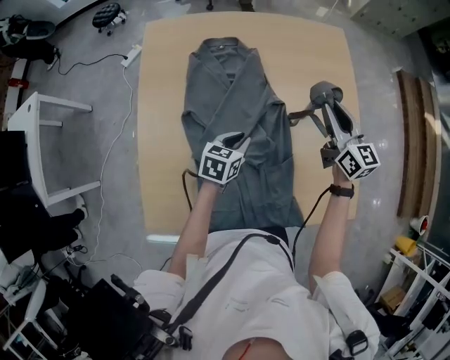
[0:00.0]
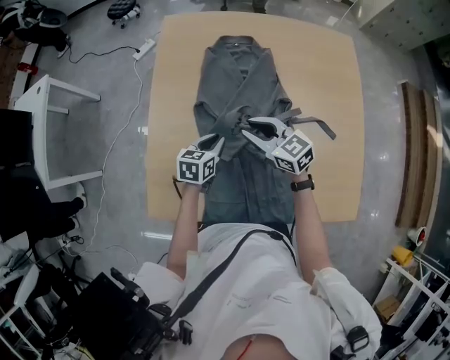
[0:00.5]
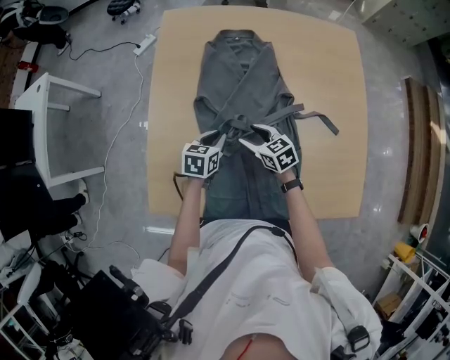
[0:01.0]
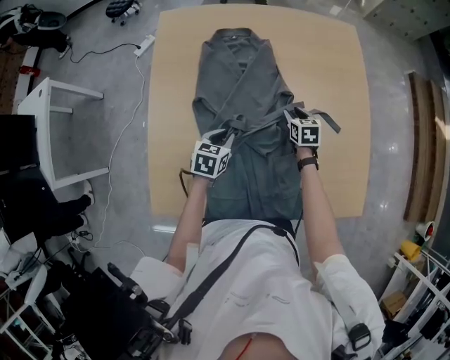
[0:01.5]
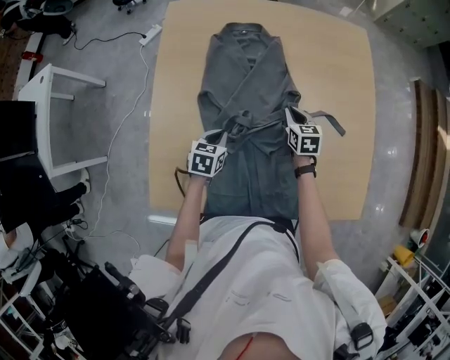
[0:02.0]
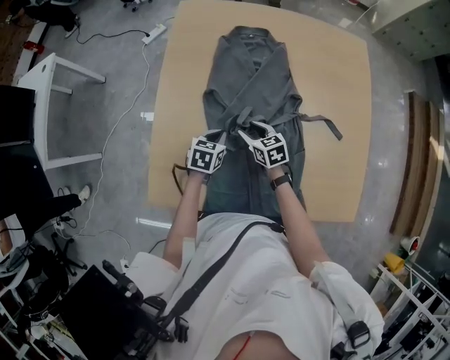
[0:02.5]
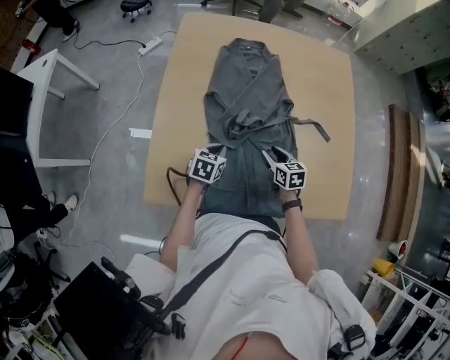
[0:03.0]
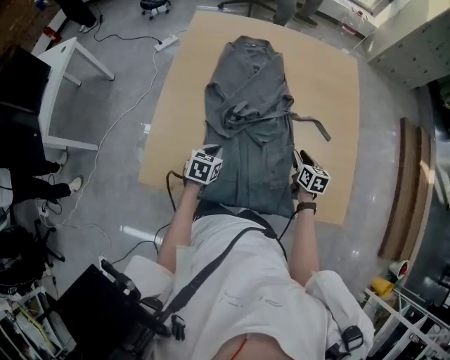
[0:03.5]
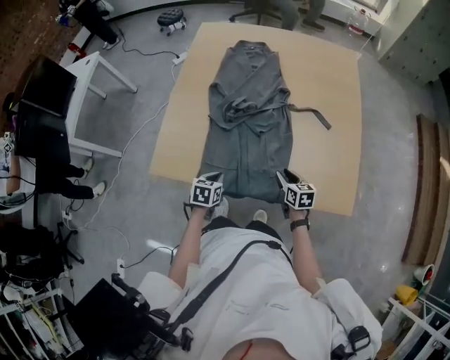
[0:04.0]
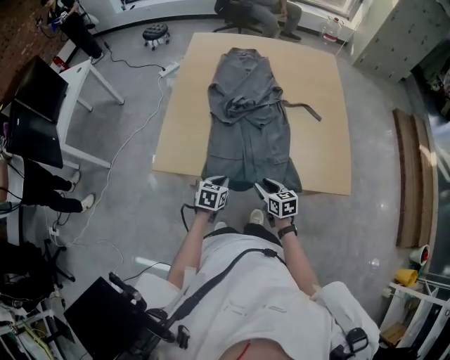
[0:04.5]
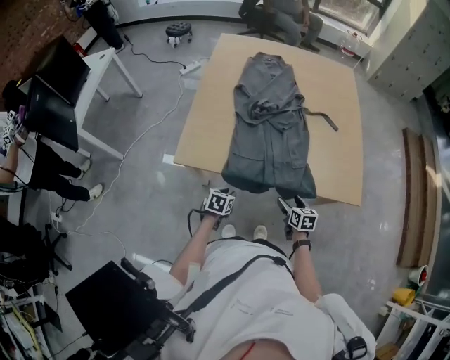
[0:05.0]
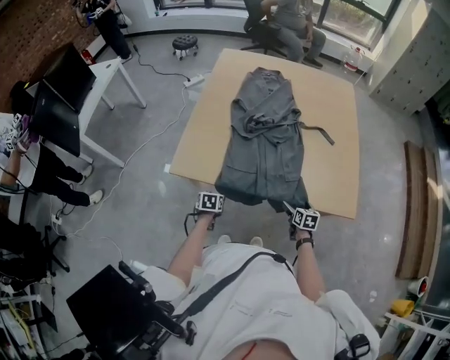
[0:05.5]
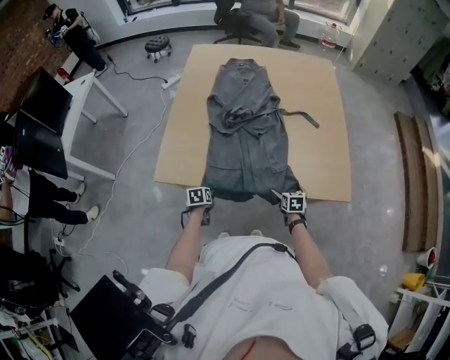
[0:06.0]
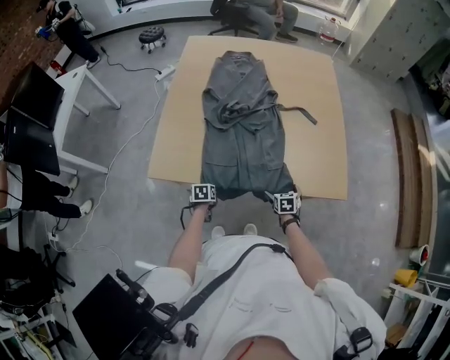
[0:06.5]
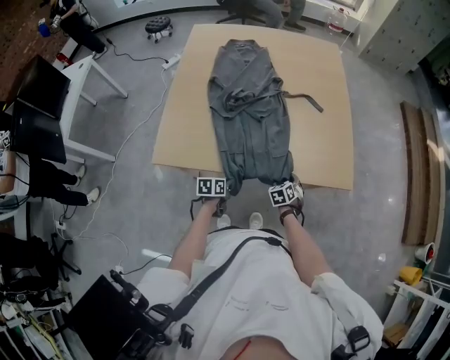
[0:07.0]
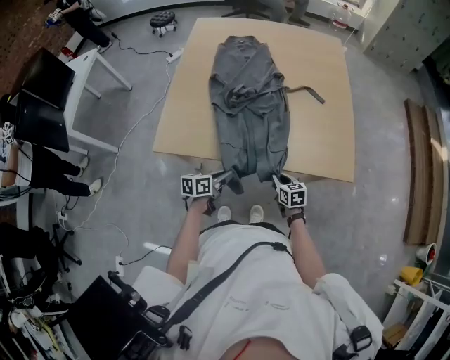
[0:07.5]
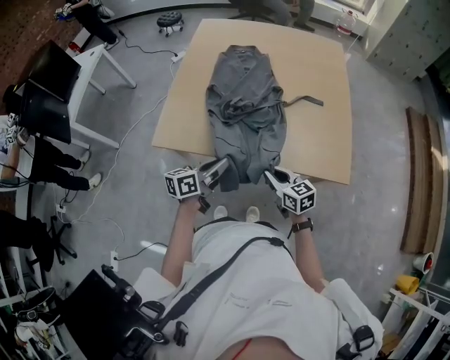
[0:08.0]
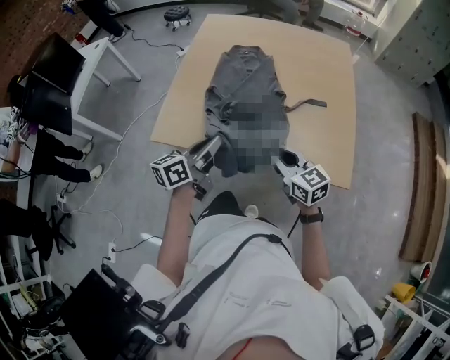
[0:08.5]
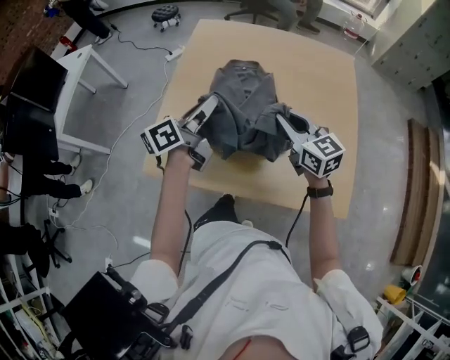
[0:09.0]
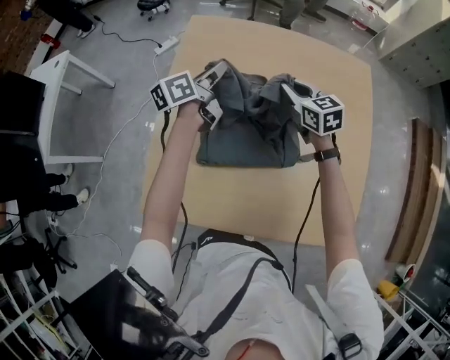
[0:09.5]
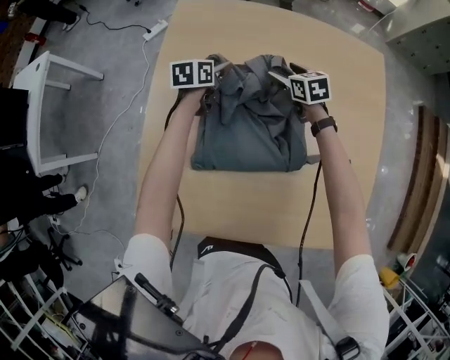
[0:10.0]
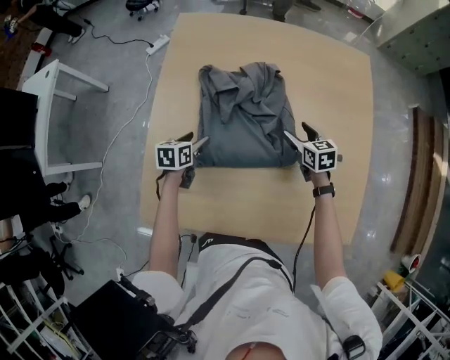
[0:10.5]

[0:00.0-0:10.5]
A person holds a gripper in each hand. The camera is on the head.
0:00.0 to 0:02.0: The left gripper moves about 15 cm. The right gripper goes roughly 25 cm downward, and tilts its fingers roughly 30 degrees downward.
0:02.0 to 0:04.0: Both grippers move backward, approximately 25 cm.
0:04.0 to 0:06.5: The left gripper moves downward, backward and to the left, roughly 15 cm, and opens up. Meanwhile the right gripper goes some 10 cm backward and downward, turns by approximately 30 degrees, and opens up.
0:06.5 to 0:08.5: The grippers both shift upward by approximately 35 cm. The right gripper points its fingers about 40 degrees further upward, and closes its fingers, while the left gripper tips its fingers upward by roughly 60 degrees, and closes.
0:08.5 to 0:10.5: The two grippers go approximately 40 cm forward and downward. The right gripper turns by about 30 degrees, and opens up; the left gripper tilts its fingers roughly 40 degrees downward, and opens its fingers.

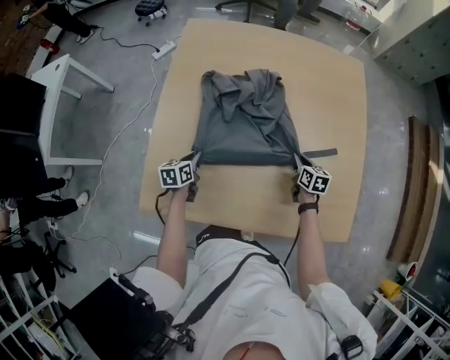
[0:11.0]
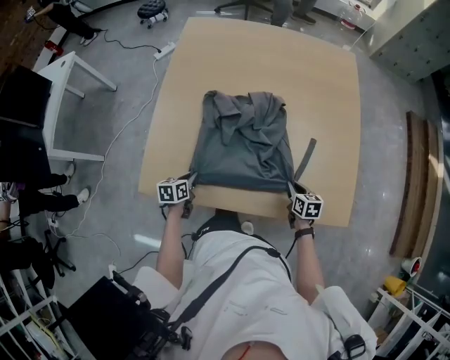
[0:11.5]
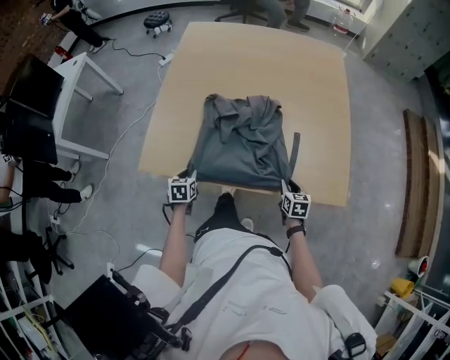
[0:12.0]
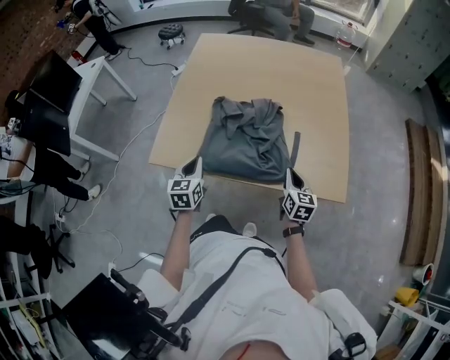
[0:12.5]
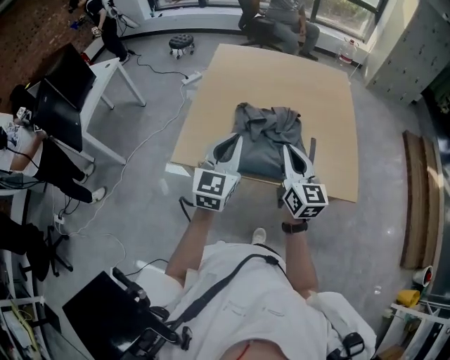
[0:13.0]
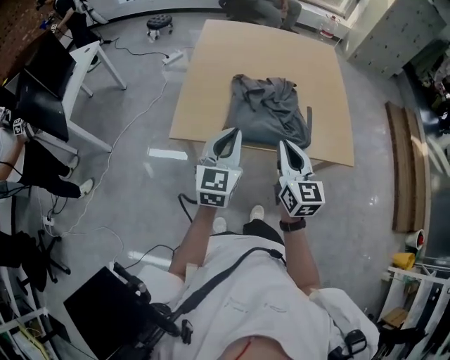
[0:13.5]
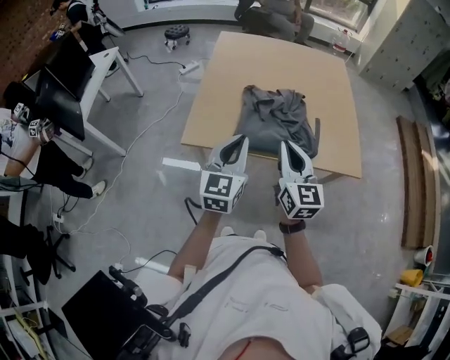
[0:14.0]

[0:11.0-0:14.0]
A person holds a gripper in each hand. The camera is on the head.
0:11.0 to 0:12.5: Both grippers move backward and upward, approximately 30 cm. The right gripper changes its angle by approximately 20 degrees. The left gripper swivels about 30 degrees.
0:12.5 to 0:14.0: The left gripper shifts roughly 20 cm upward and backward, and turns by about 30 degrees. The right gripper travels upward, to the left and backward by approximately 35 cm, and turns by approximately 30 degrees.

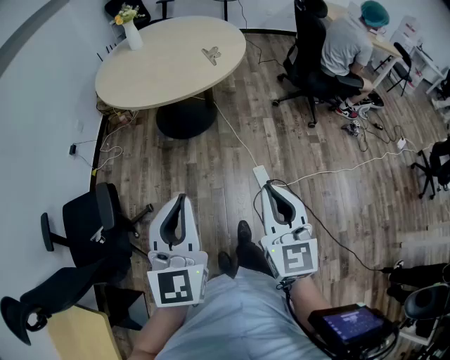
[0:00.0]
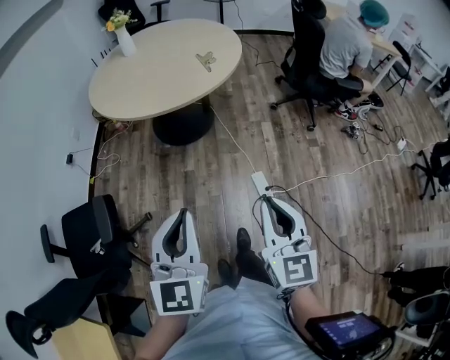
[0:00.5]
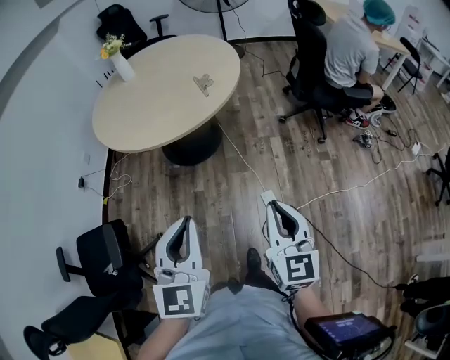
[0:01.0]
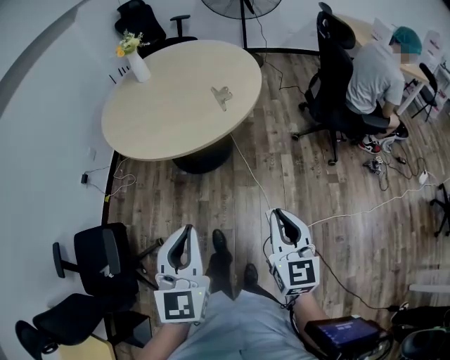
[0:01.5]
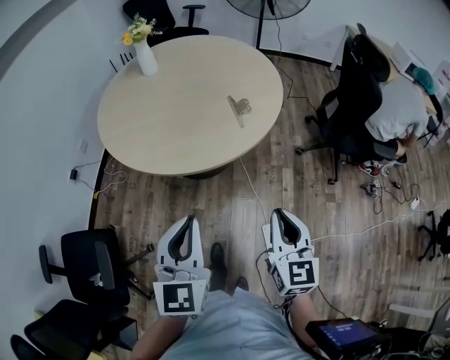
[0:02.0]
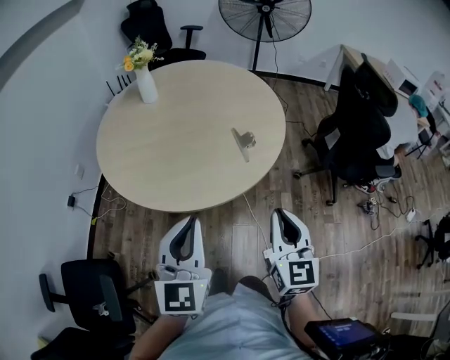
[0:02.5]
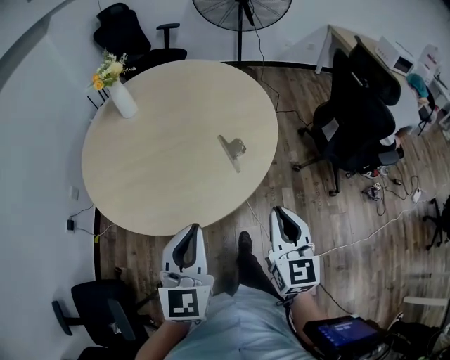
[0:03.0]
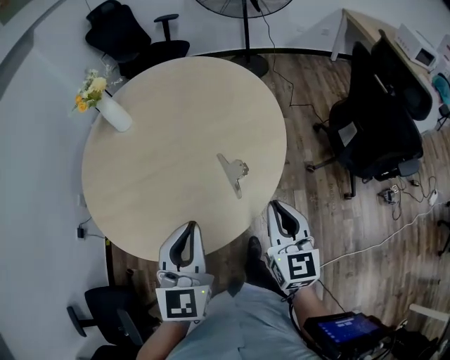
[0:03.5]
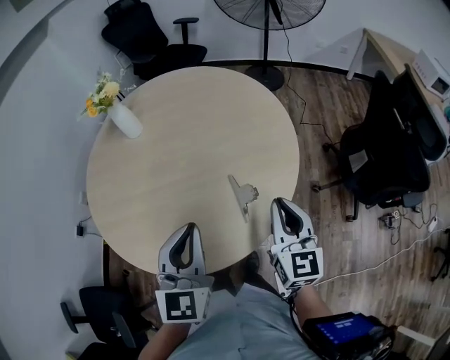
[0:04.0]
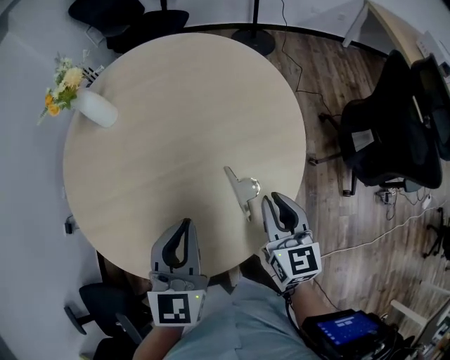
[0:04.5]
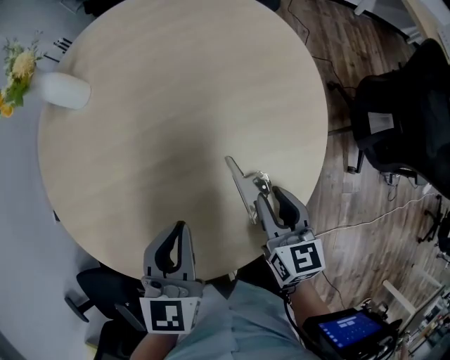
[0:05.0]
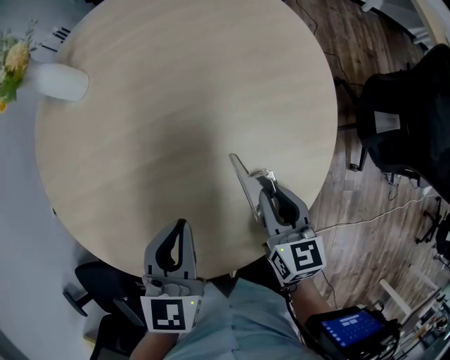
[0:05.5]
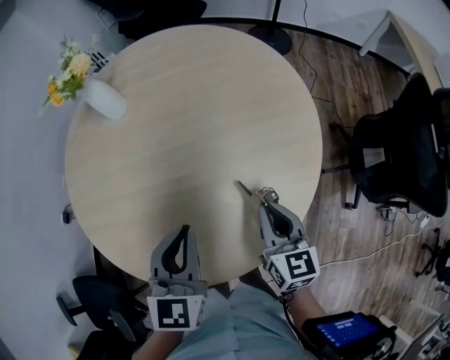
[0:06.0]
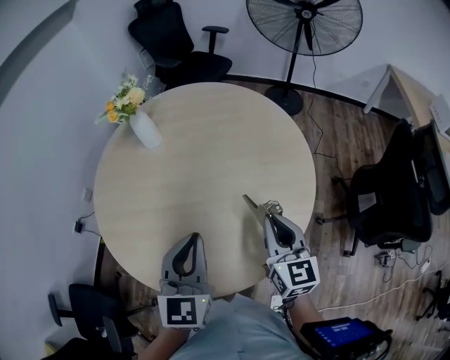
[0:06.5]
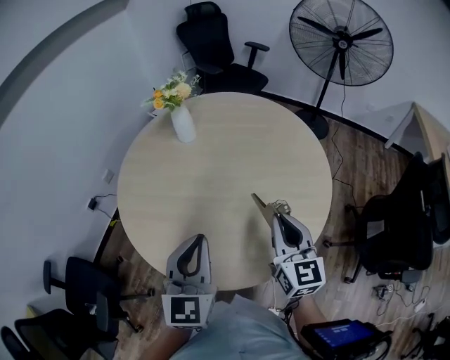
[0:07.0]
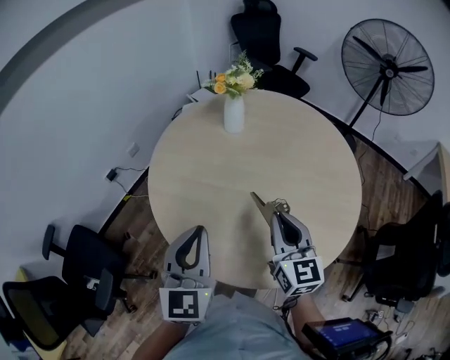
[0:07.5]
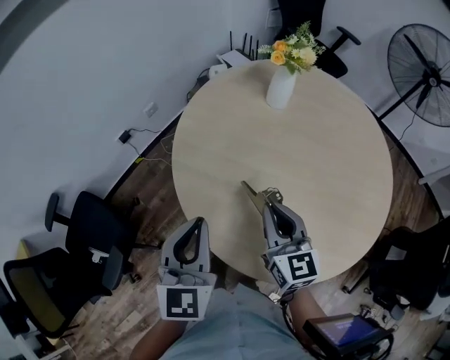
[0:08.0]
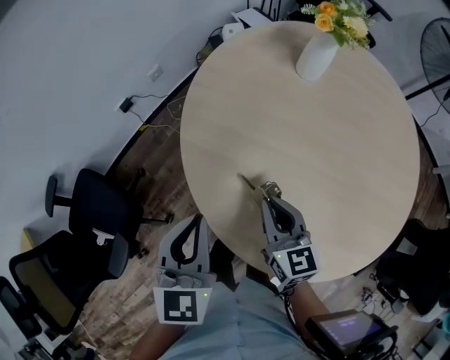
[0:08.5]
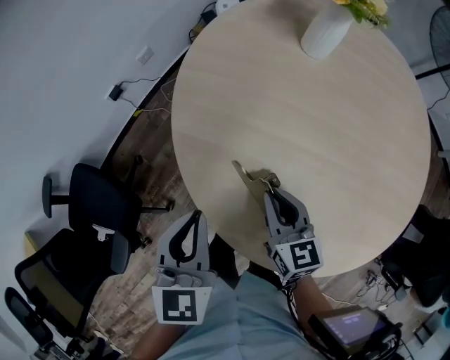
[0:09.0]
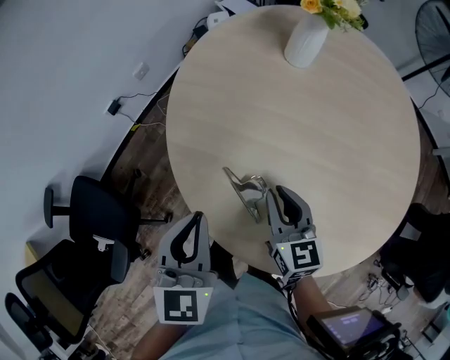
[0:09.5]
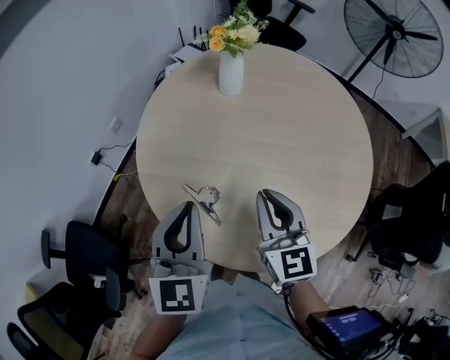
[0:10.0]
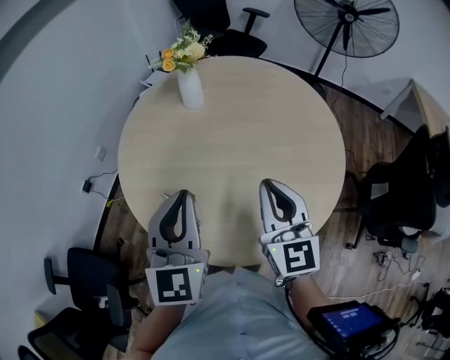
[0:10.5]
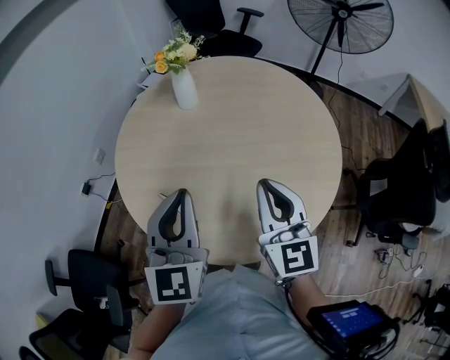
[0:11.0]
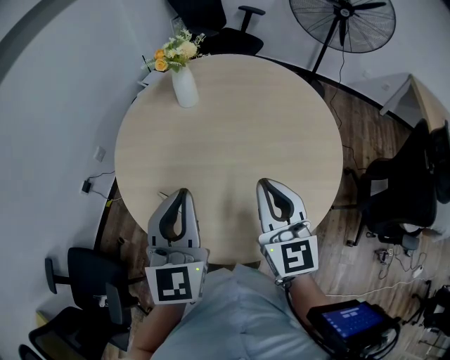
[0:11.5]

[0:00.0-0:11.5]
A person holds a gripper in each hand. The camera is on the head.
0:00.0 to 0:02.0: The grippers both shift forward by about 40 cm.
0:02.0 to 0:04.0: The two grippers travel together, forward, approximately 40 cm.
0:04.0 to 0:06.0: The left gripper moves forward and downward, approximately 15 cm, while the right gripper moves downward, forward and to the left, some 15 cm, and opens and closes again.
0:06.0 to 0:07.5: The left gripper heads to the left, upward and backward, covering roughly 25 cm, and changes its angle by some 30 degrees. The right gripper goes approximately 25 cm to the left and upward, and swivels roughly 30 degrees.
0:07.5 to 0:09.5: The left gripper shifts about 25 cm to the left, downward and forward, and turns by roughly 20 degrees; the right gripper is displaced downward, to the left and forward by roughly 30 cm.
0:09.5 to 0:11.5: The right gripper moves upward, to the right and backward, roughly 30 cm, and swivels approximately 30 degrees, while the left gripper travels to the right and upward by roughly 25 cm, and swivels some 30 degrees.

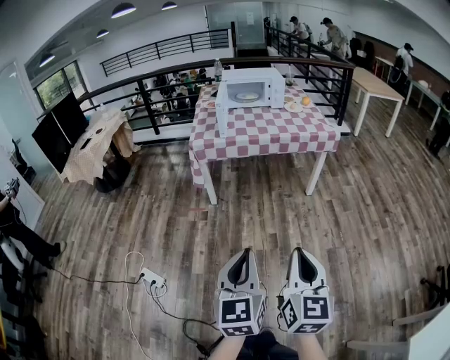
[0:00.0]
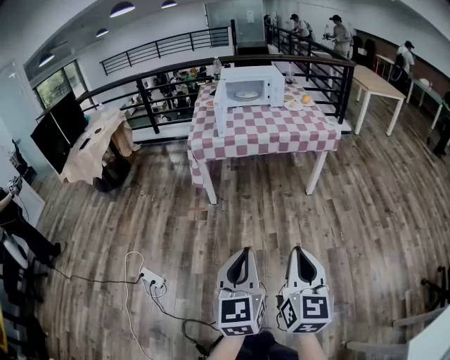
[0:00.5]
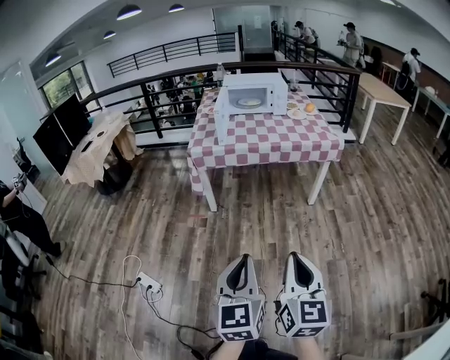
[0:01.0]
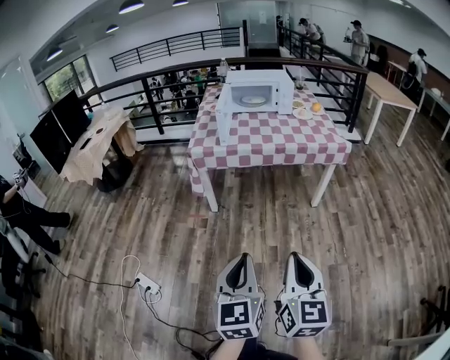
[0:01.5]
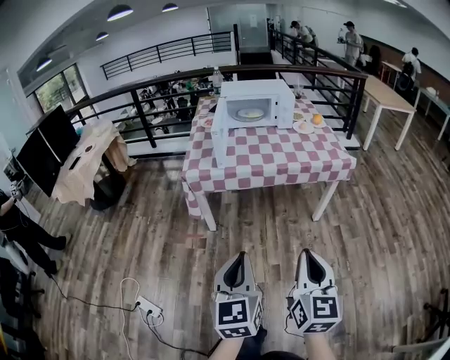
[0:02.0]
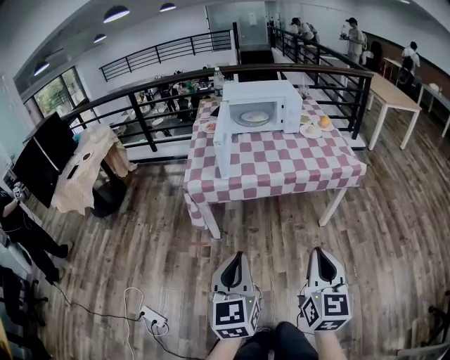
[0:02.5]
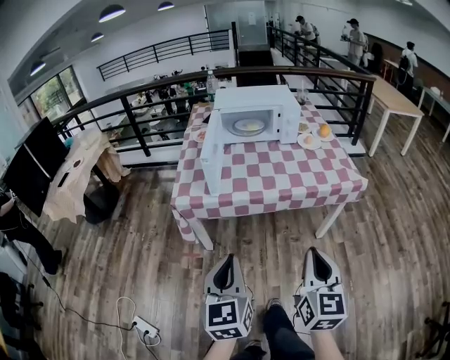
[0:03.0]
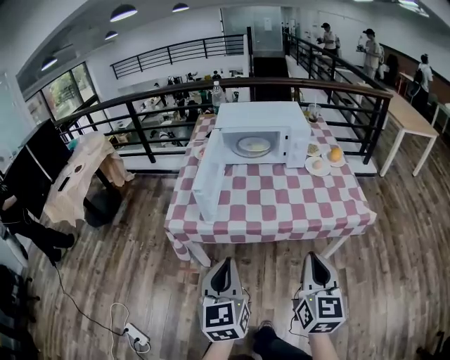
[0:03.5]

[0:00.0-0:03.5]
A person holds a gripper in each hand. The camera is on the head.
0:00.0 to 0:02.0: The two grippers go roughly 25 cm forward.
0:02.0 to 0:03.5: The two grippers go approximately 30 cm forward.
